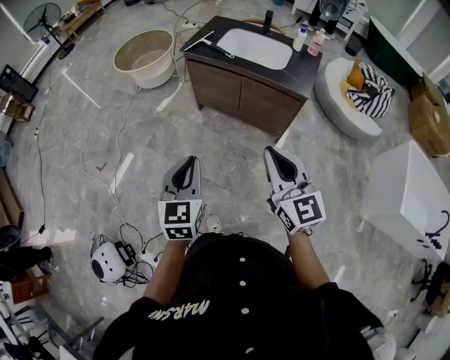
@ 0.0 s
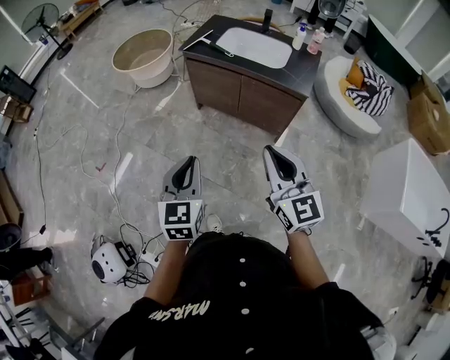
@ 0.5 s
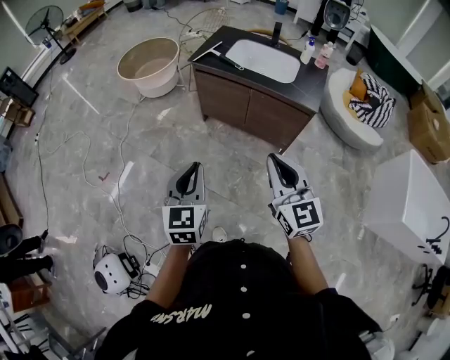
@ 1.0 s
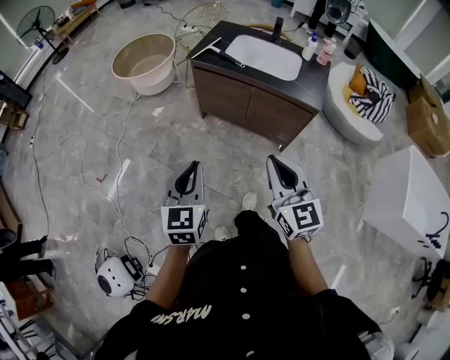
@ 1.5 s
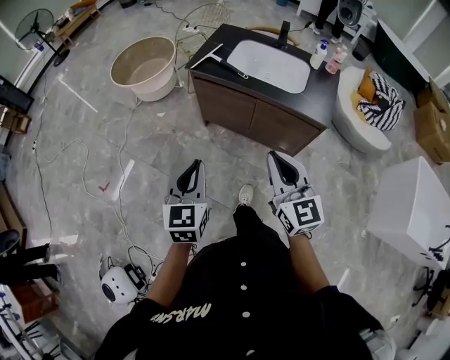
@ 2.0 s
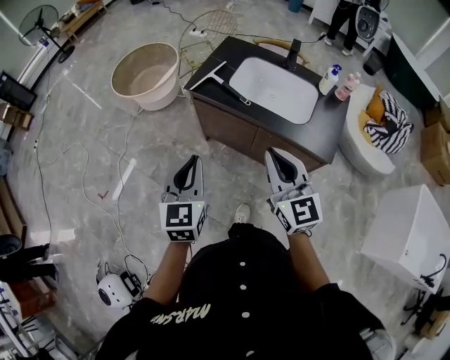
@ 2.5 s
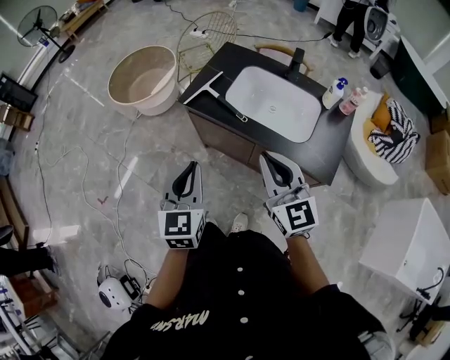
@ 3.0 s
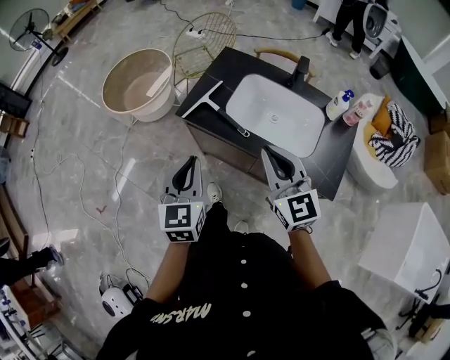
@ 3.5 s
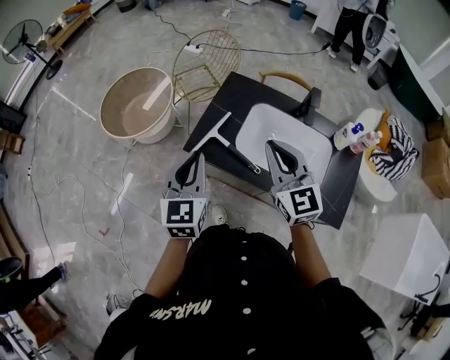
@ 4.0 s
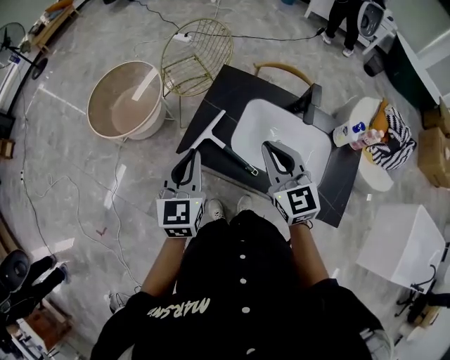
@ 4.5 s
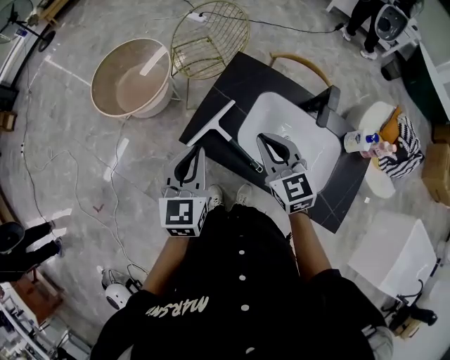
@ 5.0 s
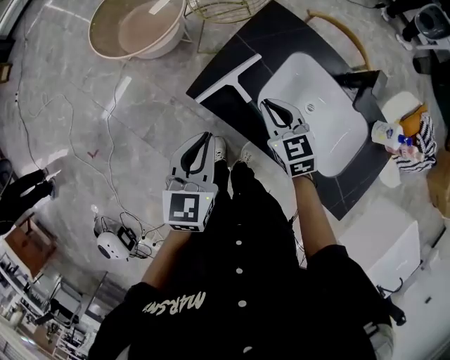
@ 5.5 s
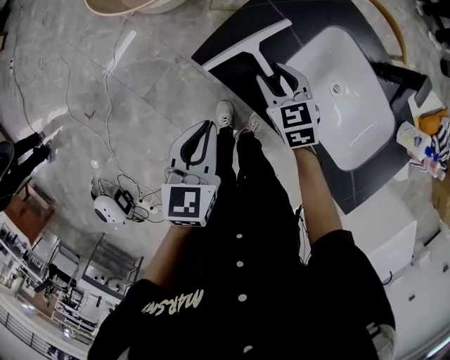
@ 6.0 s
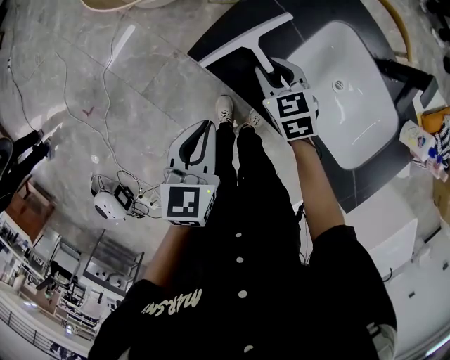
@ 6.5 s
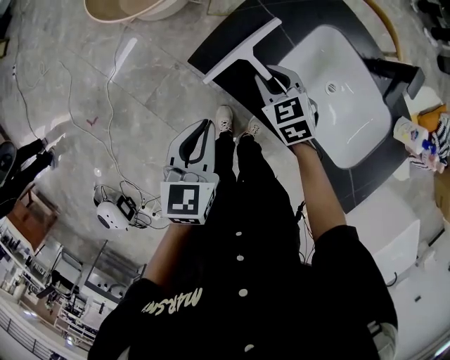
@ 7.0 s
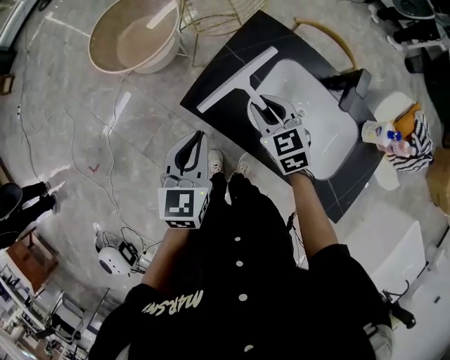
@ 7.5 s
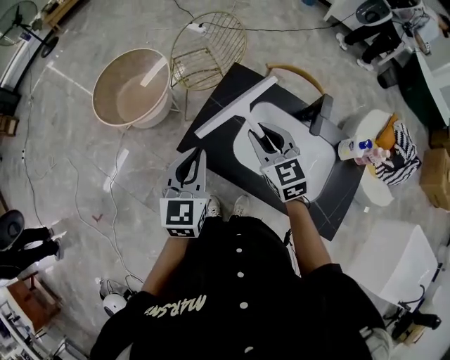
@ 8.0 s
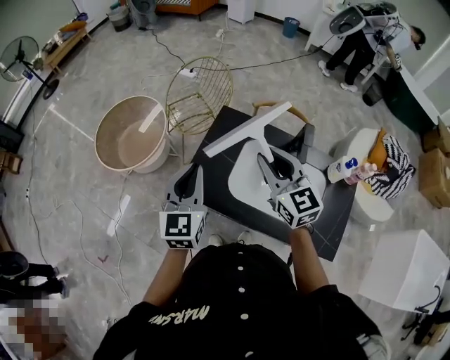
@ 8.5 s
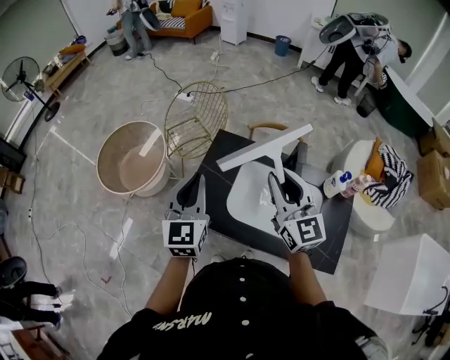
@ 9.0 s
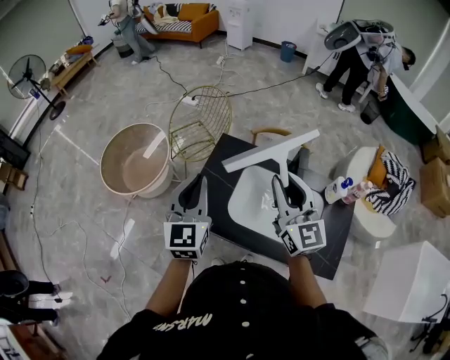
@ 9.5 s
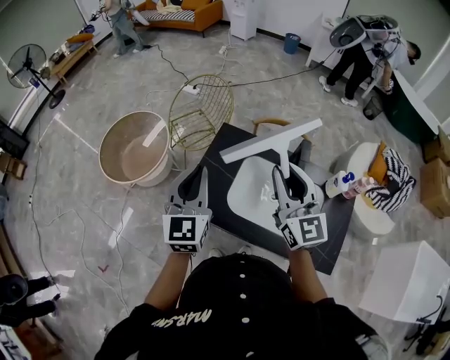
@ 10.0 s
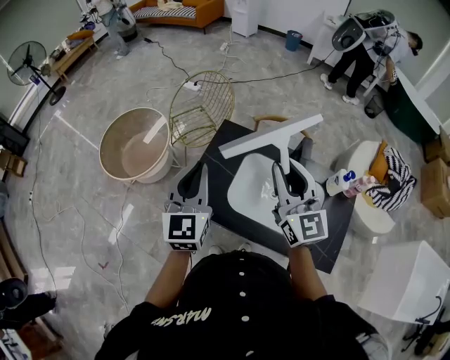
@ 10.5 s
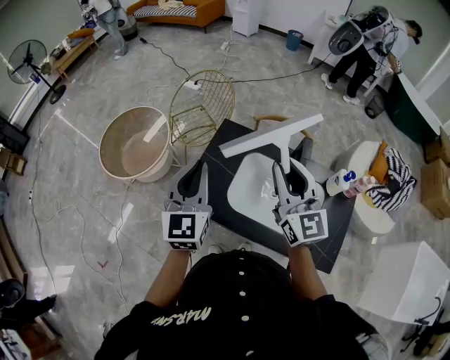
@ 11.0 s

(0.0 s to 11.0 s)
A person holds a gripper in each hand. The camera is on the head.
0.0 s - 2.0 s: Both grippers travel together forward, approximately 20 cm.
2.0 s - 3.5 s: The grippers both shift forward by some 35 cm.
3.5 s - 5.5 s: The left gripper travels forward and downward by approximately 20 cm; the right gripper heads forward and downward, covering some 35 cm, and turns by about 30 degrees.
5.5 s - 7.5 s: The left gripper travels downward and back again, roughly 10 cm each way, while the right gripper reaches roughly 10 cm downward, then returns.
7.5 s - 9.0 s: The right gripper heads upward and to the right, covering approximately 30 cm, and angles its fingers upward, by about 40 degrees. The left gripper shifts approximately 20 cm upward and forward, and swivels approximately 30 degrees.
9.0 s - 11.0 s: The grippers stay close to where they were, moving slightly.

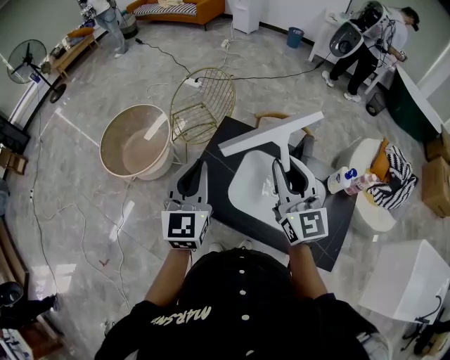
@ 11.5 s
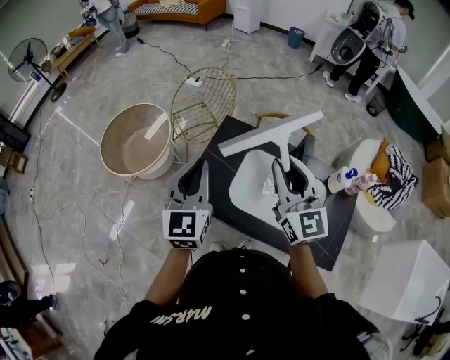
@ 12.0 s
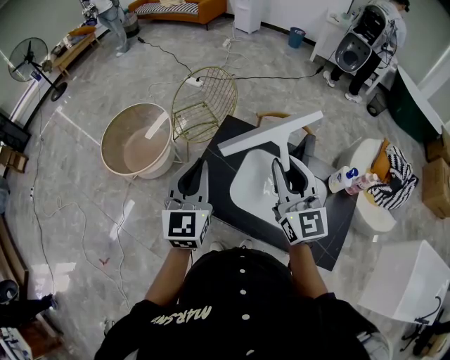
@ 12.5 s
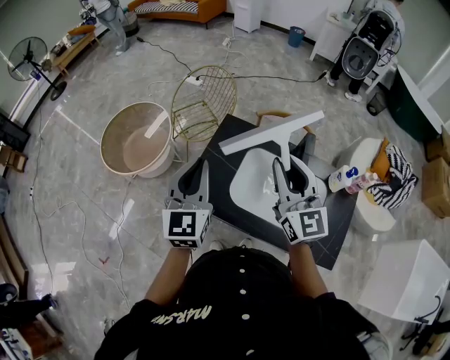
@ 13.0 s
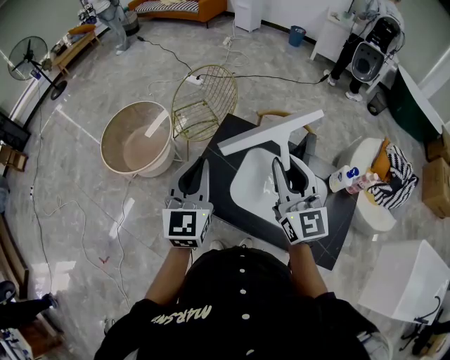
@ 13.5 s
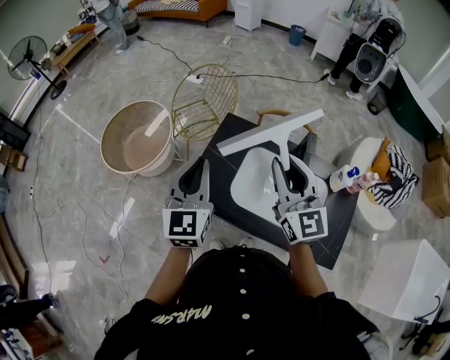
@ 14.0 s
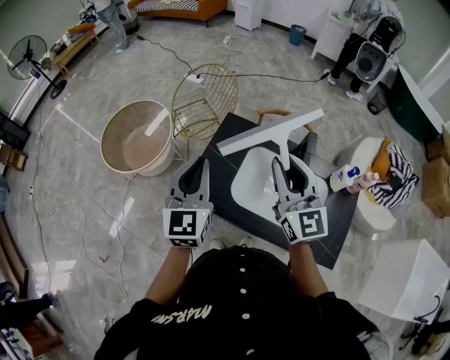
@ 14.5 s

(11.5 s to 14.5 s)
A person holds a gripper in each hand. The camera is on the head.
11.5 s - 14.5 s: Neither gripper changes place.

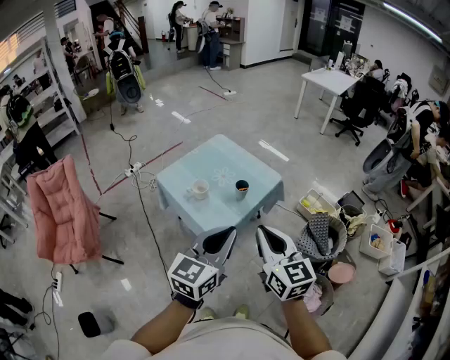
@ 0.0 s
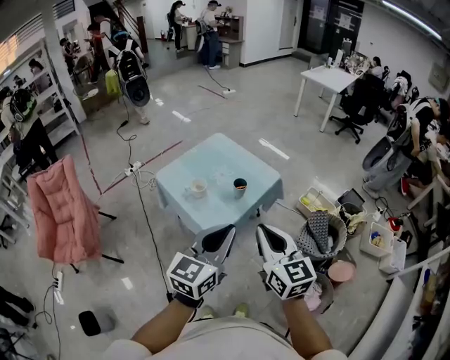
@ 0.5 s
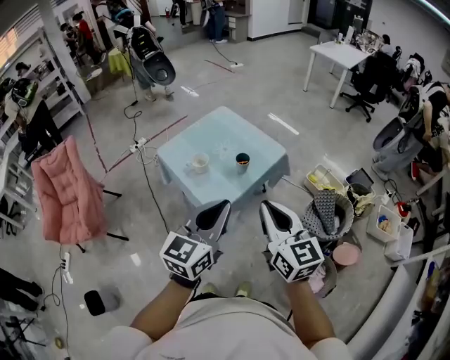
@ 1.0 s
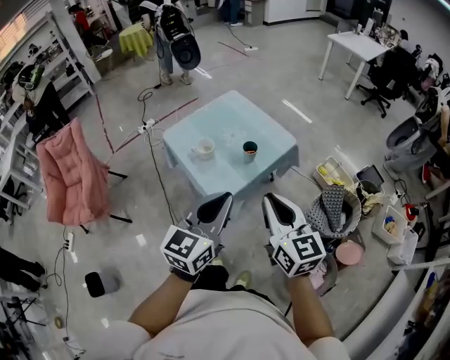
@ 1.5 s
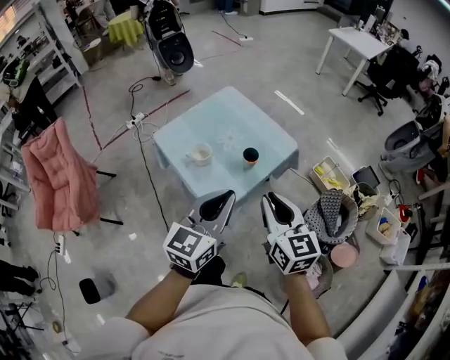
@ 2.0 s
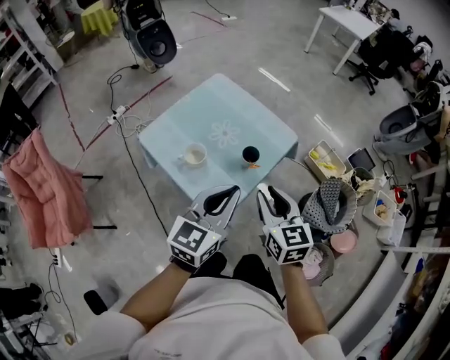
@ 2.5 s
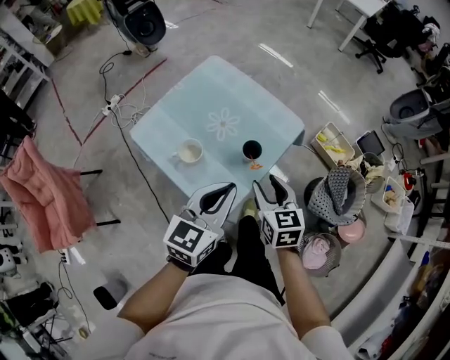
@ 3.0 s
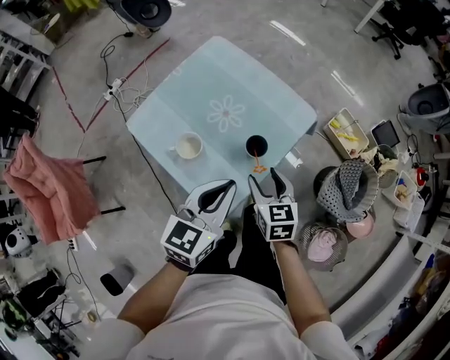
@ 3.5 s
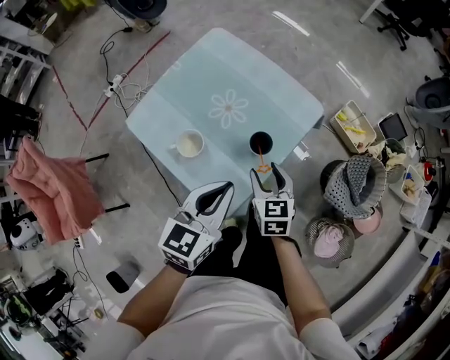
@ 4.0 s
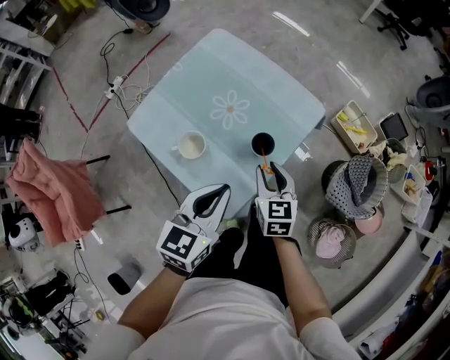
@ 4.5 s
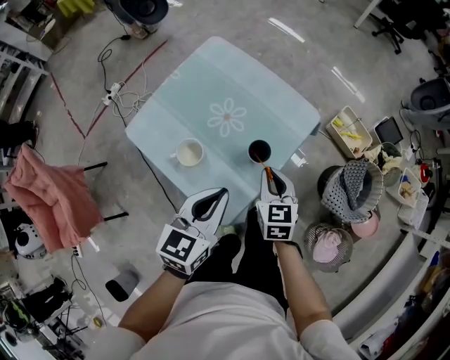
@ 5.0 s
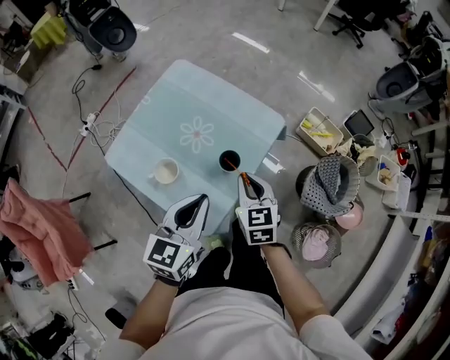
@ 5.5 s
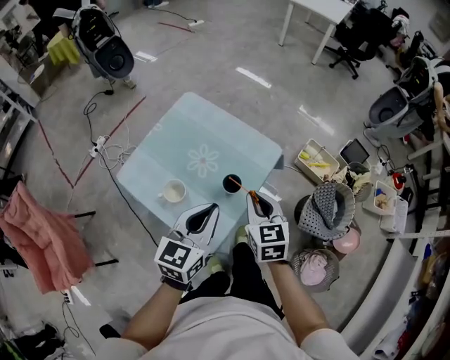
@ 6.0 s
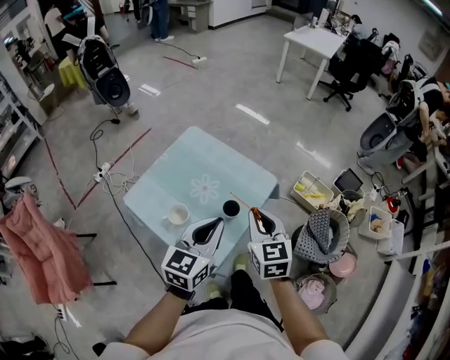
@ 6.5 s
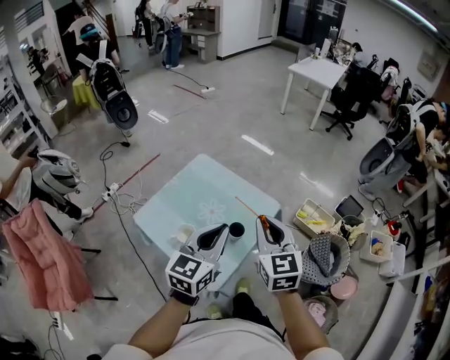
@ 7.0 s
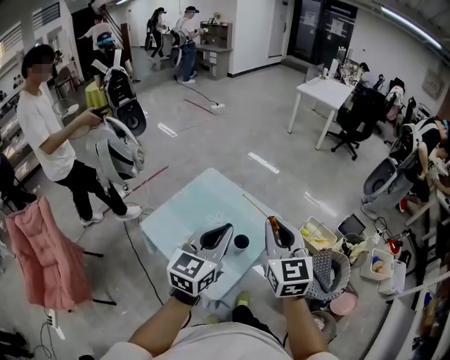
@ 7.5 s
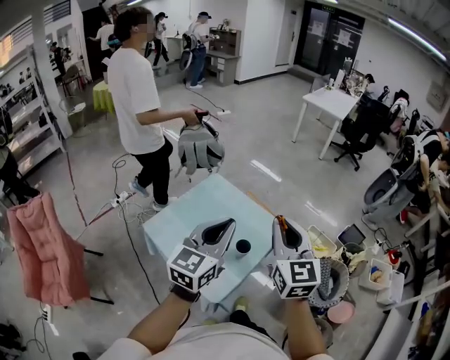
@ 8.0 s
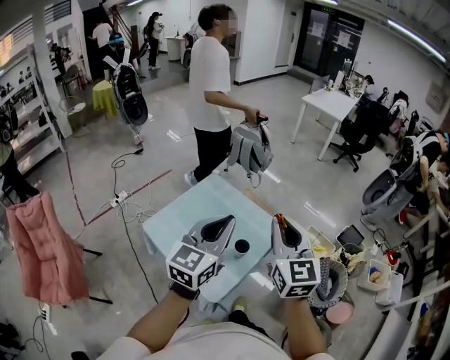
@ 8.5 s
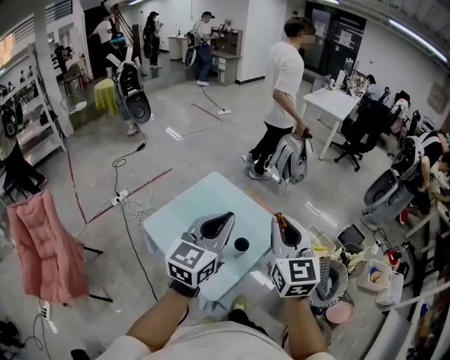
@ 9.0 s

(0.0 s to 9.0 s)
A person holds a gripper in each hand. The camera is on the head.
0.0 s - 2.0 s: Both grippers travel together forward and downward, some 15 cm.
2.0 s - 4.5 s: The grippers both shift downward and forward by roughly 30 cm. The right gripper swivels approximately 30 degrees, and opens; the left gripper turns by roughly 20 degrees.
4.5 s - 7.0 s: The left gripper goes about 20 cm upward, while the right gripper shifts about 30 cm upward, changes its angle by approximately 20 degrees, and closes.
7.0 s - 9.0 s: Both grippers move upward, about 10 cm.

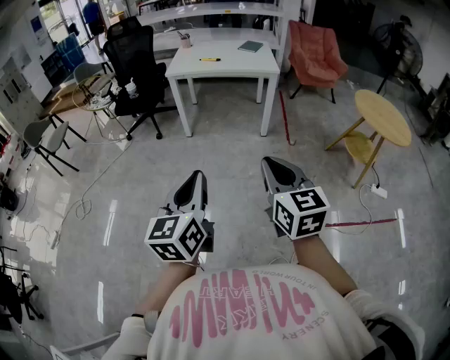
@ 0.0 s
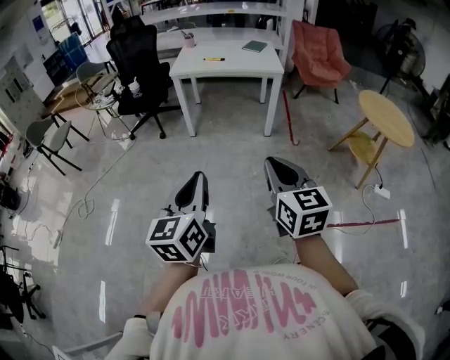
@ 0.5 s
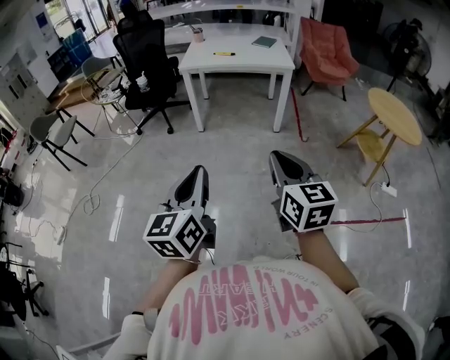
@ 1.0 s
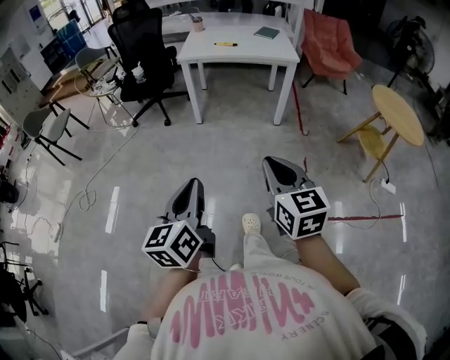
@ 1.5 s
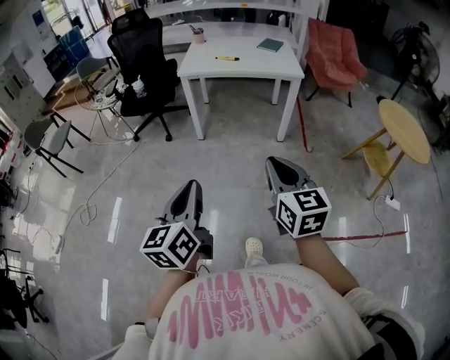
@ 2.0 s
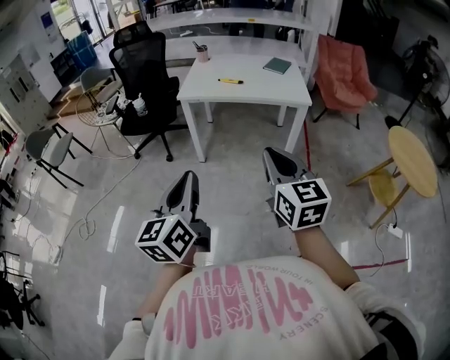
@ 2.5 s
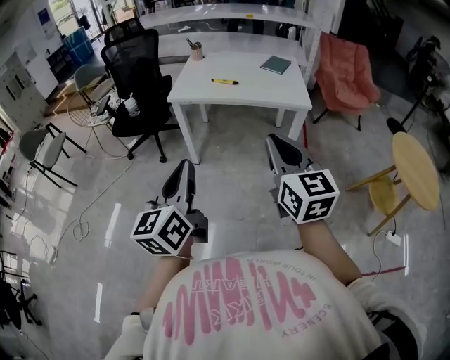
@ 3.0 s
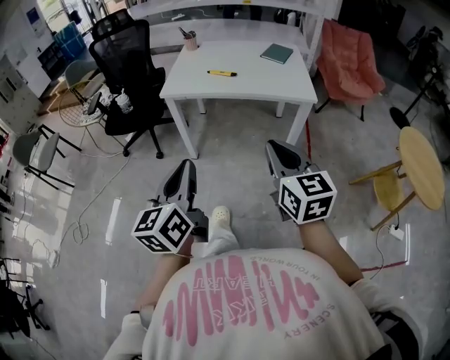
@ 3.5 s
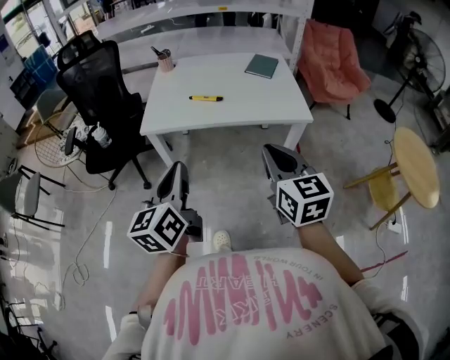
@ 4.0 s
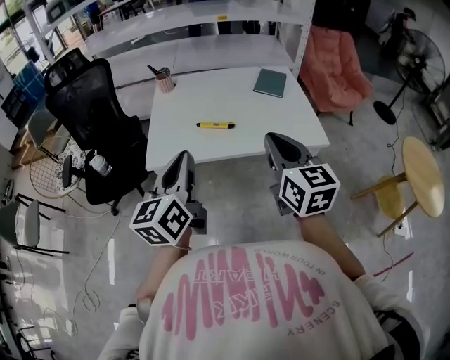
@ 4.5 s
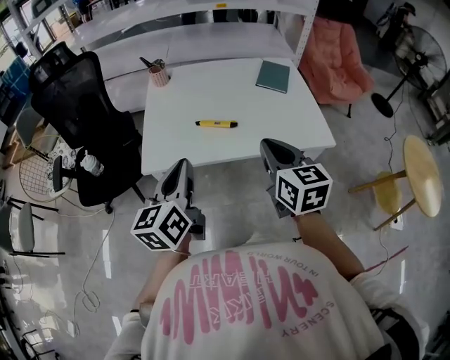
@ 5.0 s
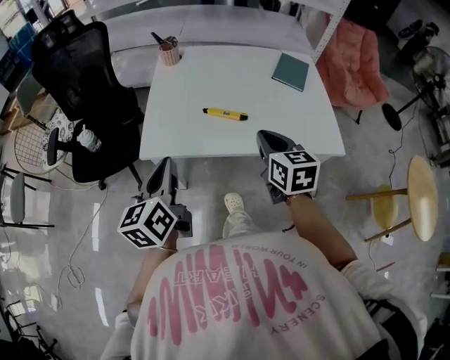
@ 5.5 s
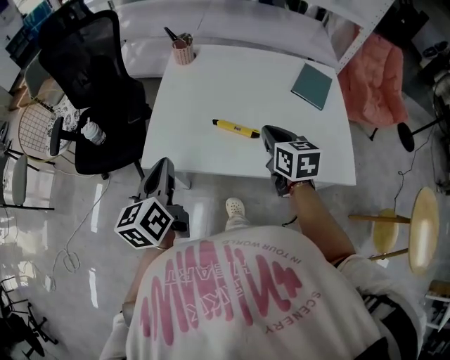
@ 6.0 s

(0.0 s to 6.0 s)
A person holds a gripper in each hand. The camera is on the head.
0.0 s - 2.0 s: The grippers both shift forward and to the left by roughly 20 cm.
2.0 s - 4.0 s: The pair of grippers is taken forward, roughly 70 cm.
4.0 s - 6.0 s: The two grippers travel together, forward, approximately 50 cm. The right gripper changes its angle by approximately 20 degrees.
